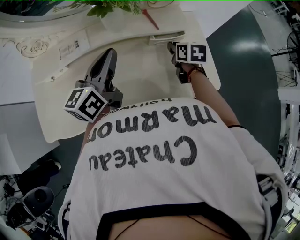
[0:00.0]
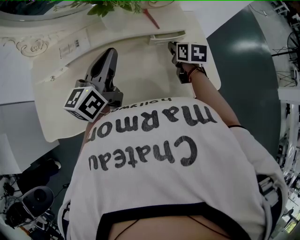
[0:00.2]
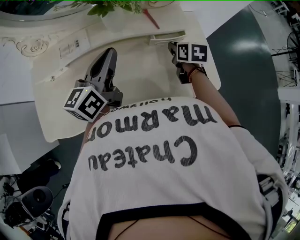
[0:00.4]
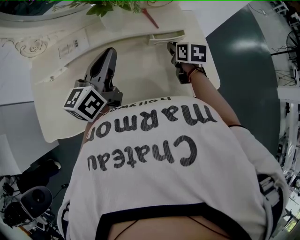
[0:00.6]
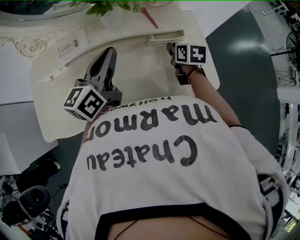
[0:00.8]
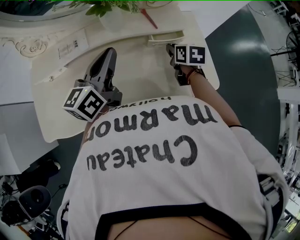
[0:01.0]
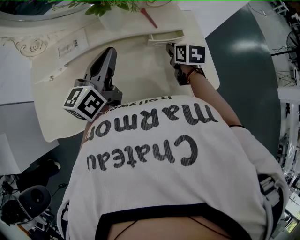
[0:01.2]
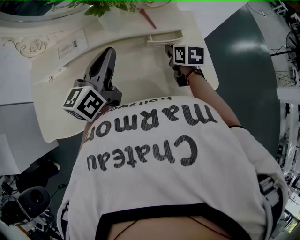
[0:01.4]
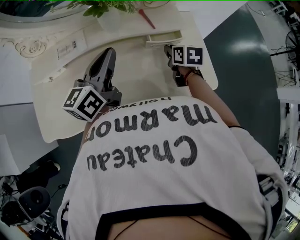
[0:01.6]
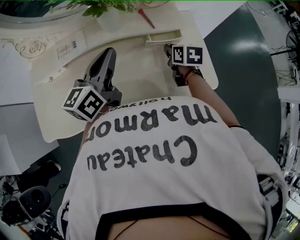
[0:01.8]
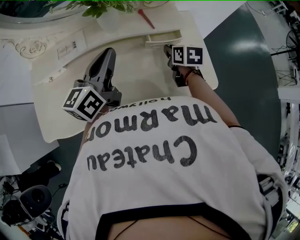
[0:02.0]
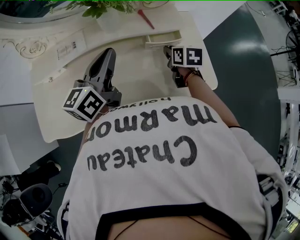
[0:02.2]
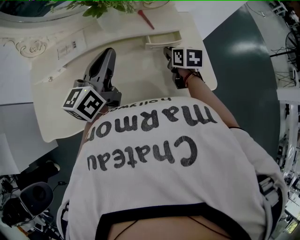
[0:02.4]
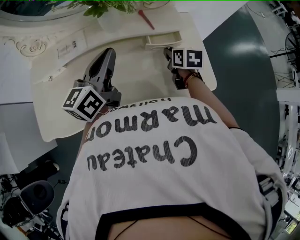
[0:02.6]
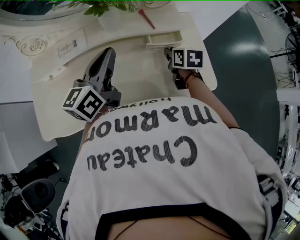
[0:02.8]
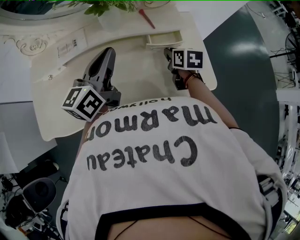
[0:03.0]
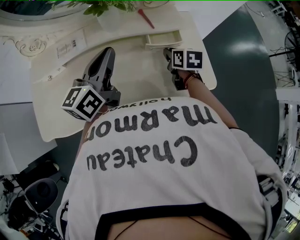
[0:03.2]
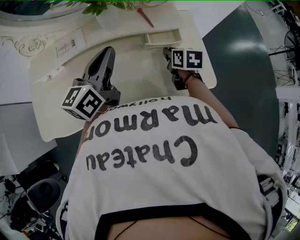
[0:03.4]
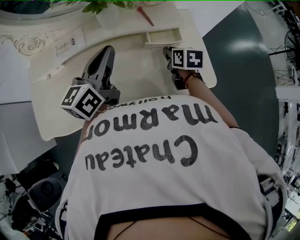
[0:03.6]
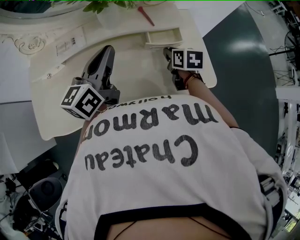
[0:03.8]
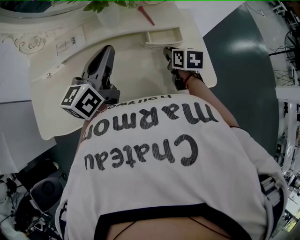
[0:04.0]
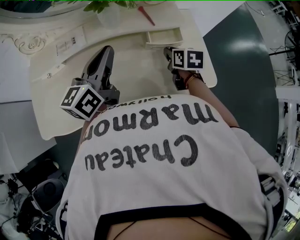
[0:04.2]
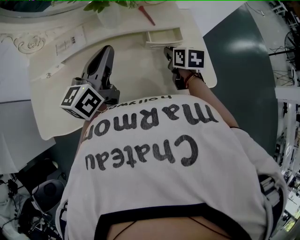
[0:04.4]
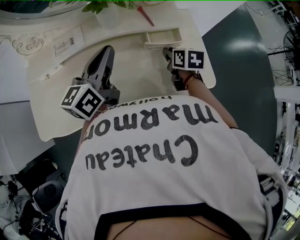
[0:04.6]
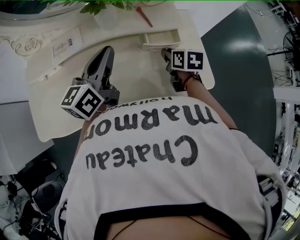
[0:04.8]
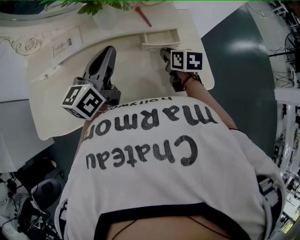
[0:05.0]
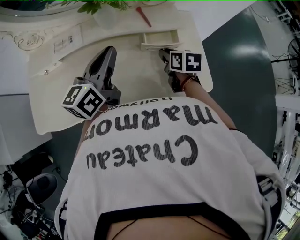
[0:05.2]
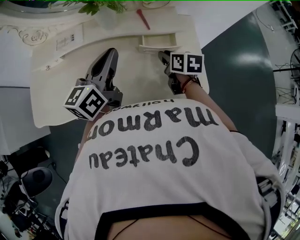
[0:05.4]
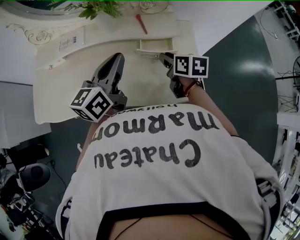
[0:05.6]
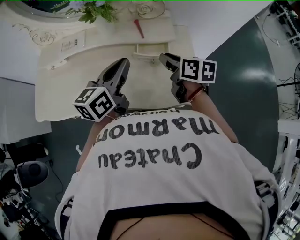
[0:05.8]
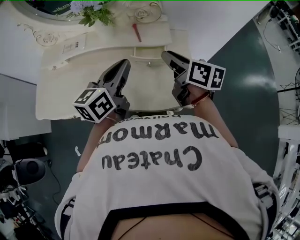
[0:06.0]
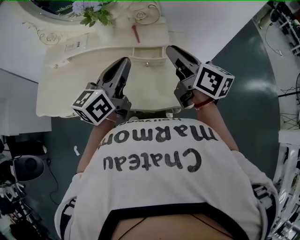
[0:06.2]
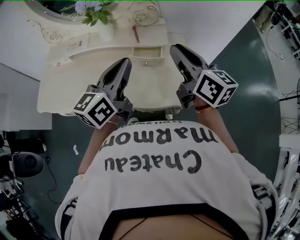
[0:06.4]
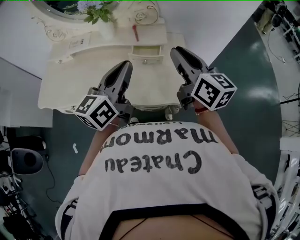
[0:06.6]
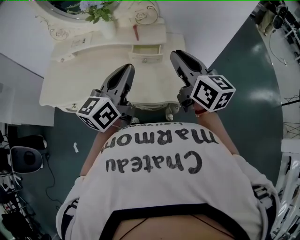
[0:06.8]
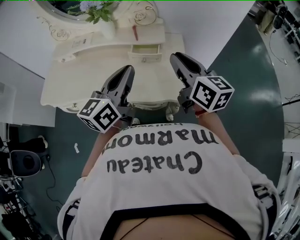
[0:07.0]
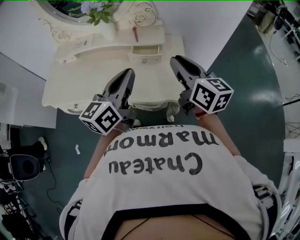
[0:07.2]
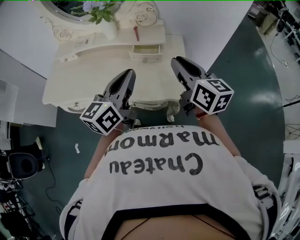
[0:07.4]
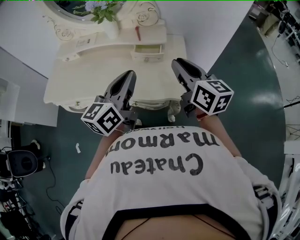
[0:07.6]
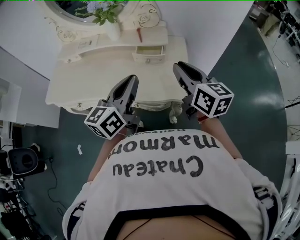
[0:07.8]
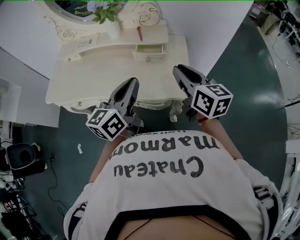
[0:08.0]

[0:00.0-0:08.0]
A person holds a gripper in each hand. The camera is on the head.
0:00.0 to 0:03.2: The grippers stay close to where they were, moving slightly.
0:03.2 to 0:04.8: Both grippers stay about where they are.
0:04.8 to 0:06.4: The left gripper travels to the right, backward and upward by some 20 cm. The right gripper shifts about 25 cm upward, and tips its fingers upward by about 40 degrees.
0:06.4 to 0:08.0: The left gripper goes roughly 10 cm backward; the right gripper is displaced backward and downward by roughly 10 cm.

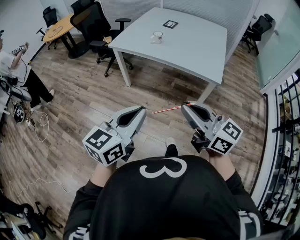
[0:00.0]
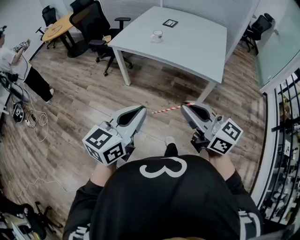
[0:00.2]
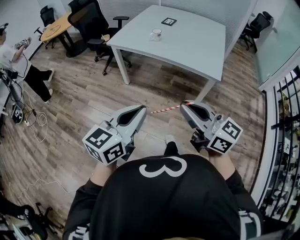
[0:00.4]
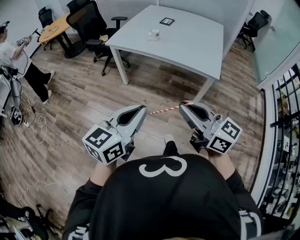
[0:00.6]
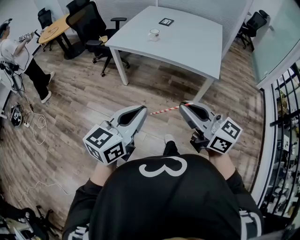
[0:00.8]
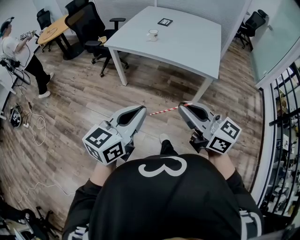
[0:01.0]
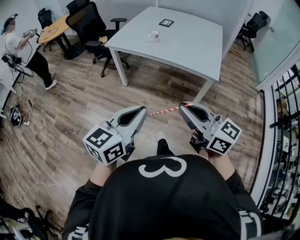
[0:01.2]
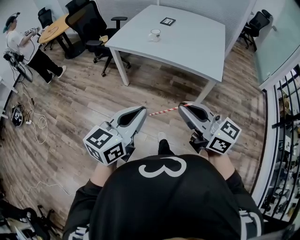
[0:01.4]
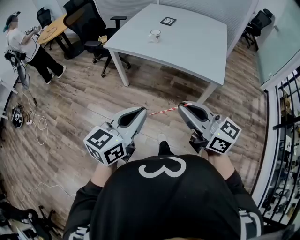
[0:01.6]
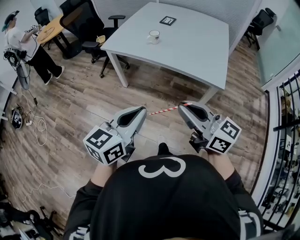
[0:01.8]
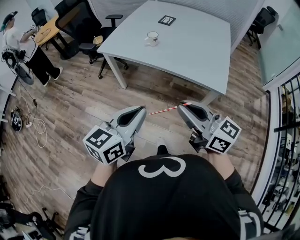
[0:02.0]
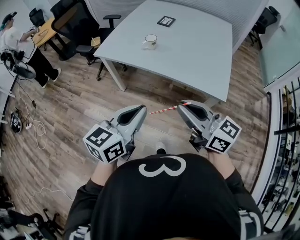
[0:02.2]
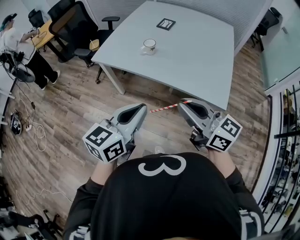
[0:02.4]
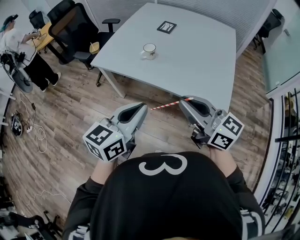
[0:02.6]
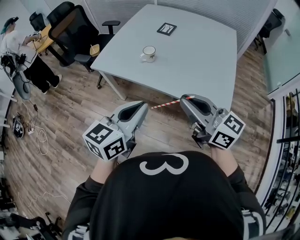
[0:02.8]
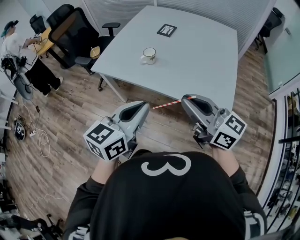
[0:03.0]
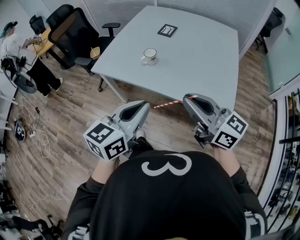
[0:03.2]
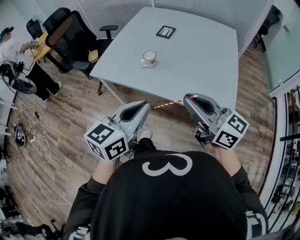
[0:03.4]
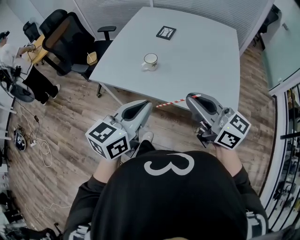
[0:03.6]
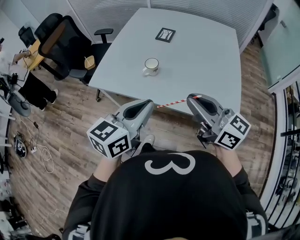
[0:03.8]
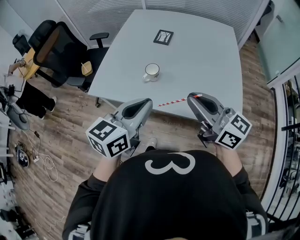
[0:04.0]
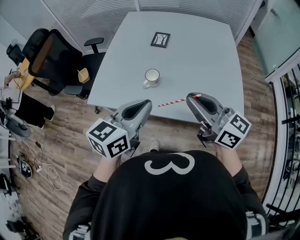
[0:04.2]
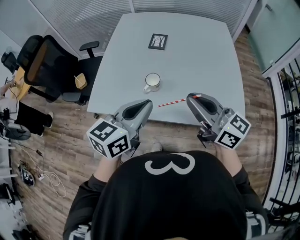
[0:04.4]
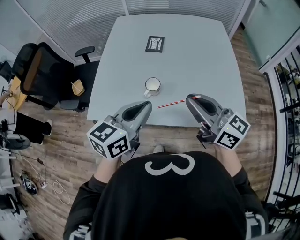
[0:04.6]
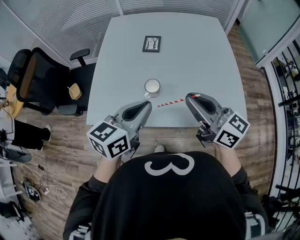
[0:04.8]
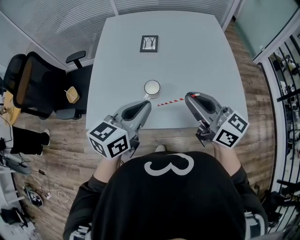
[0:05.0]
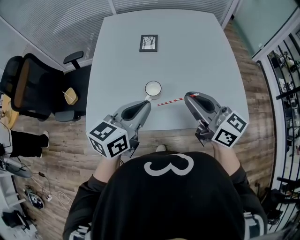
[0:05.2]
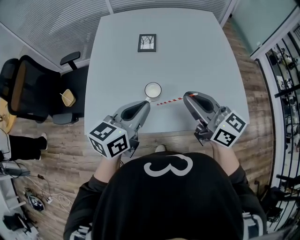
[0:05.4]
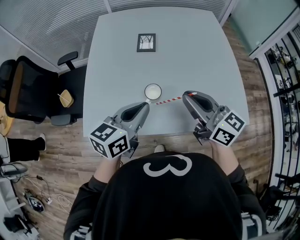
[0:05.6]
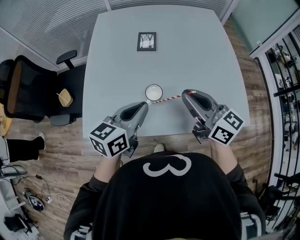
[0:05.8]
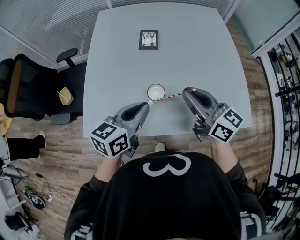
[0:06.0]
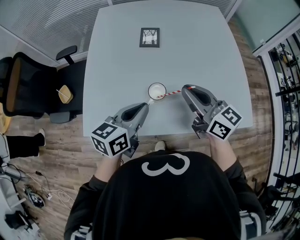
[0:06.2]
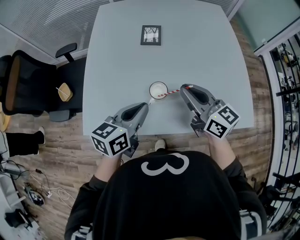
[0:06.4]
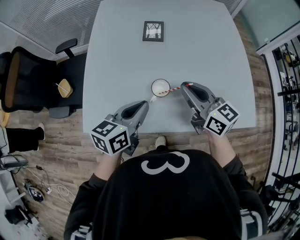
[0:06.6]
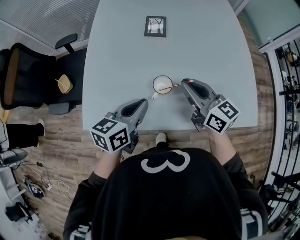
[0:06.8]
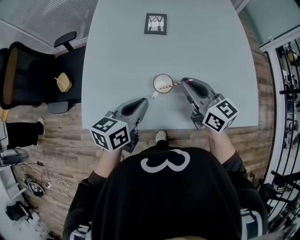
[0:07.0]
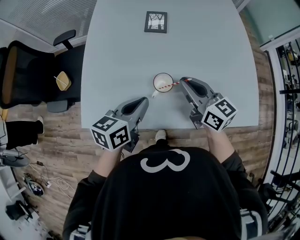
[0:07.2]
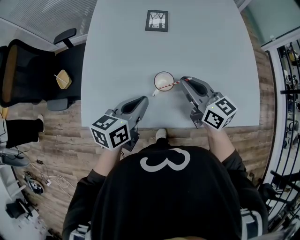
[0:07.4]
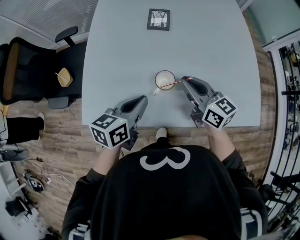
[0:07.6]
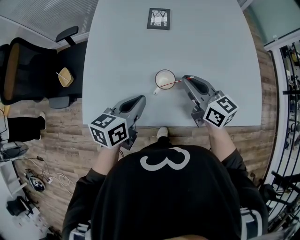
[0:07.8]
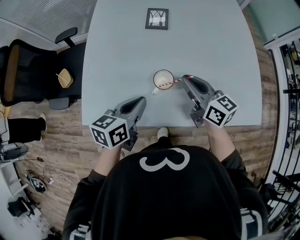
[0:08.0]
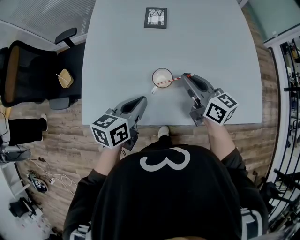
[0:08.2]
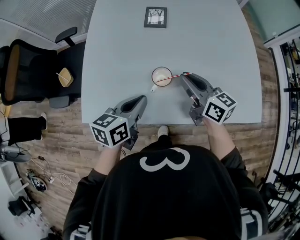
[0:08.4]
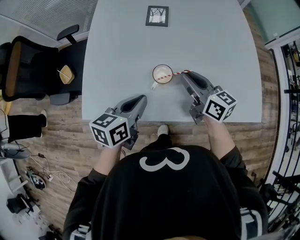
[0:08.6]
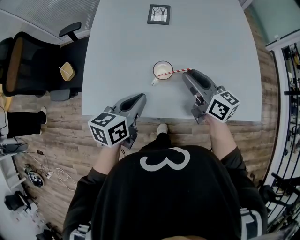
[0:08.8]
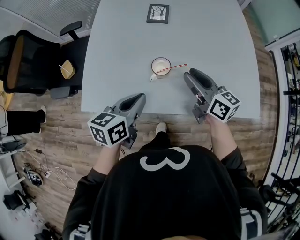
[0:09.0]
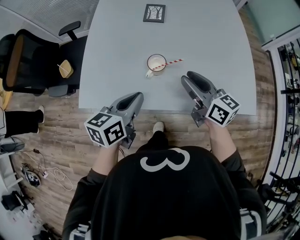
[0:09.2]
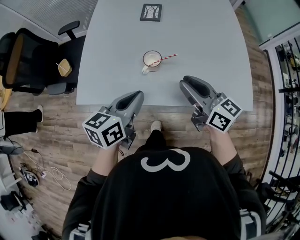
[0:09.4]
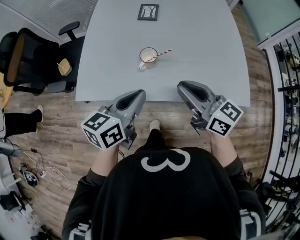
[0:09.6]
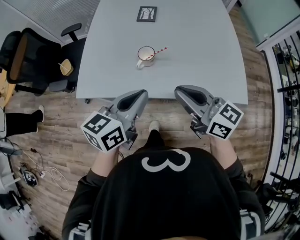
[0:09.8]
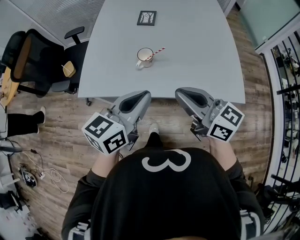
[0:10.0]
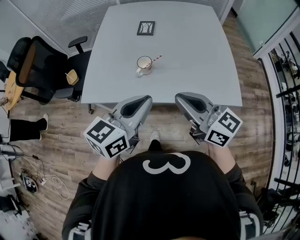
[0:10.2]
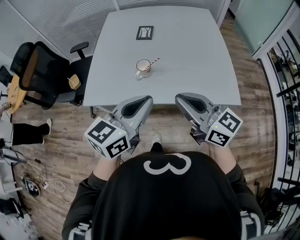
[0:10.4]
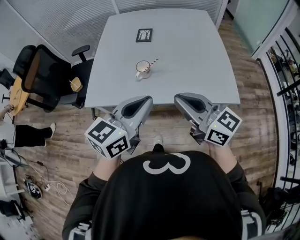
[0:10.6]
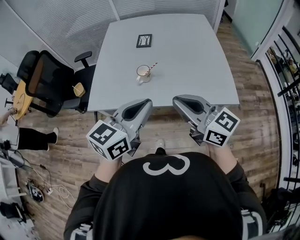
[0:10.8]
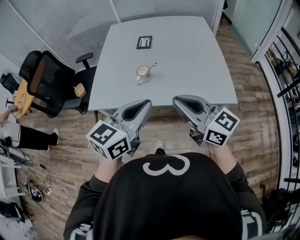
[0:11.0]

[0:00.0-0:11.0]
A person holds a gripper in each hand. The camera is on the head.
0:00.0 to 0:01.6: Both grippers travel together forward, roughly 5 cm.
0:01.6 to 0:03.2: Both grippers travel together forward, some 30 cm.
0:03.2 to 0:04.8: The right gripper travels forward and to the left by some 25 cm, and rotates approximately 20 degrees. The left gripper travels forward by some 25 cm, and turns by some 20 degrees.
0:04.8 to 0:06.2: The right gripper goes some 15 cm forward and downward, while the left gripper goes some 10 cm downward and forward.
0:06.2 to 0:07.8: The grippers both shift downward by roughly 10 cm.
0:07.8 to 0:09.4: The two grippers go some 10 cm backward and upward.
0:09.4 to 0:11.0: The left gripper goes some 20 cm upward and backward, and swivels some 30 degrees; the right gripper shifts roughly 20 cm backward and upward.

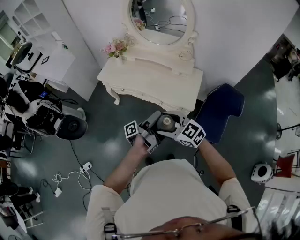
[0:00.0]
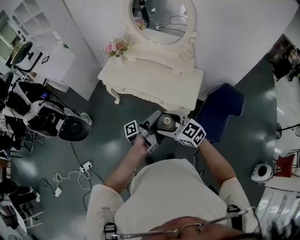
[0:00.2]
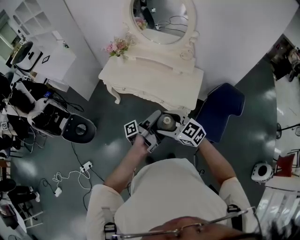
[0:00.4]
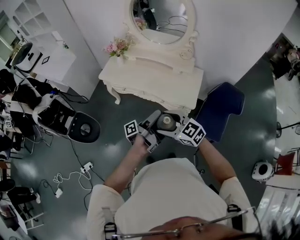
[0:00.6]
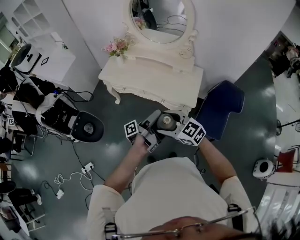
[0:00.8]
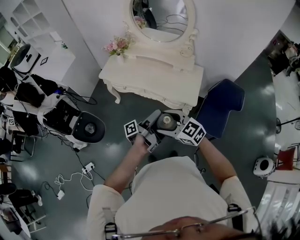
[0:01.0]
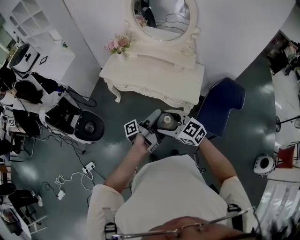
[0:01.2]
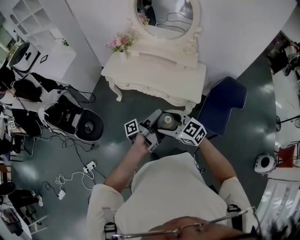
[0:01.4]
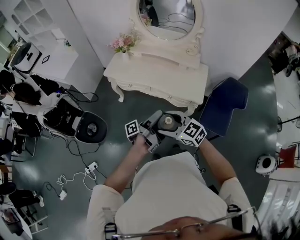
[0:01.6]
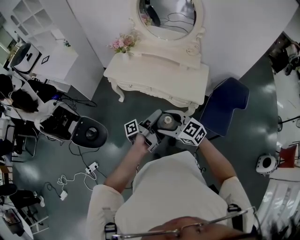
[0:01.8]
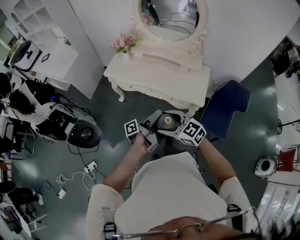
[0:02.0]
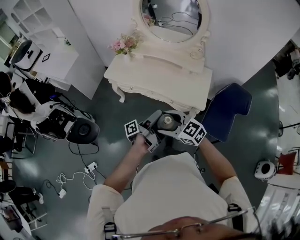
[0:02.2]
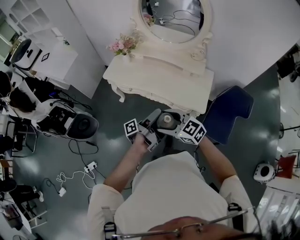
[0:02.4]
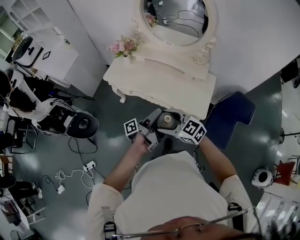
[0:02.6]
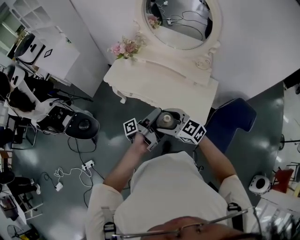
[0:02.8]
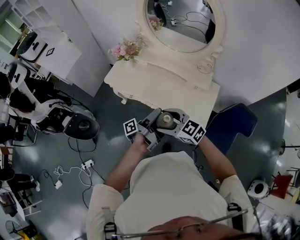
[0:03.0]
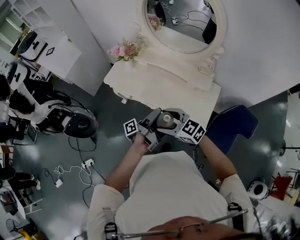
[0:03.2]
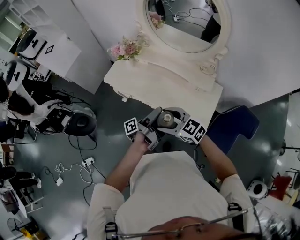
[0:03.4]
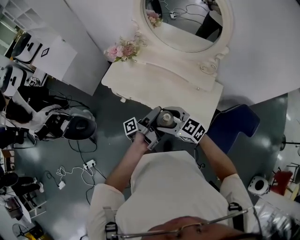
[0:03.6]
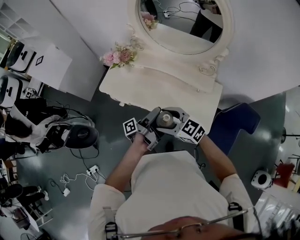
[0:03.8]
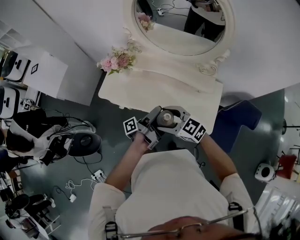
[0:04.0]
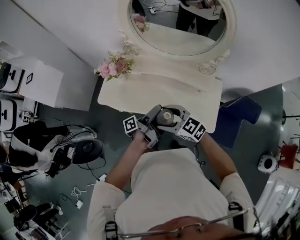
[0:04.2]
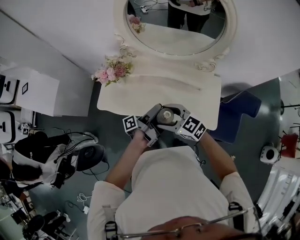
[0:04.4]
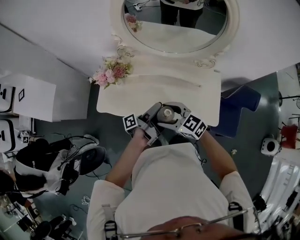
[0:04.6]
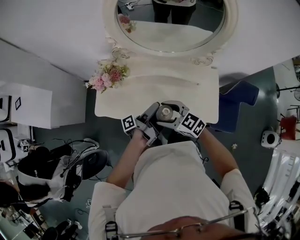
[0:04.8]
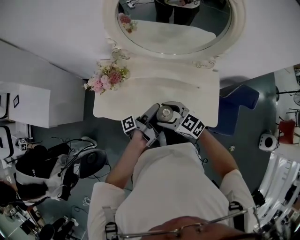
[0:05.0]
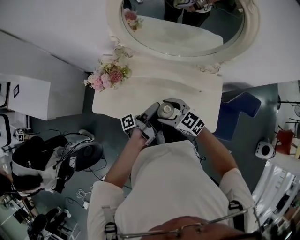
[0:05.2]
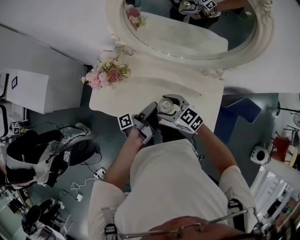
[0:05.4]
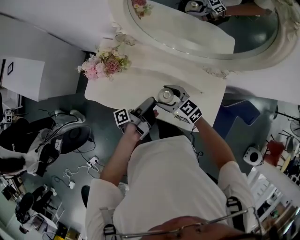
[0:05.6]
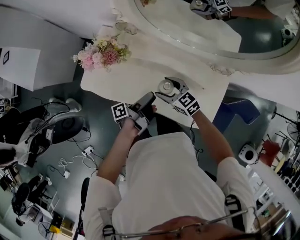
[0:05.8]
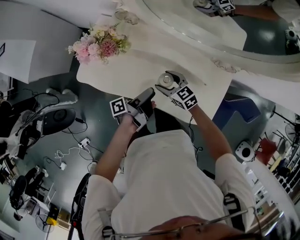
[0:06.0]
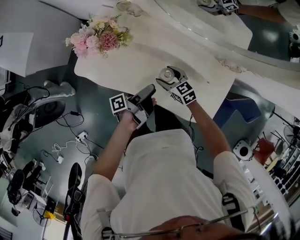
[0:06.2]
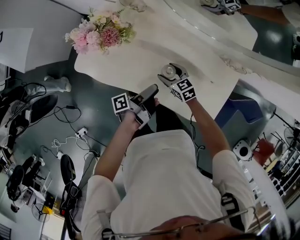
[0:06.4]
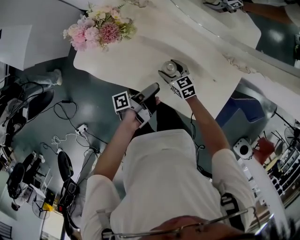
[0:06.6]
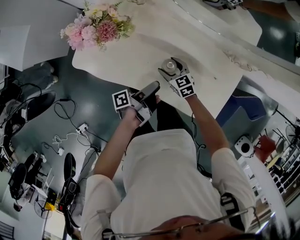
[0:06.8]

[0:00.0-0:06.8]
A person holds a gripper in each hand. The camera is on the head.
0:00.0 to 0:01.4: The right gripper ends up some 10 cm from where it was.
0:01.4 to 0:02.8: The right gripper changes place by roughly 15 cm.
0:02.8 to 0:04.0: The right gripper ends up approximately 15 cm from where it was.
0:04.0 to 0:05.4: The right gripper moves approximately 20 cm.
0:05.4 to 0:06.8: The right gripper shifts some 25 cm downward.
